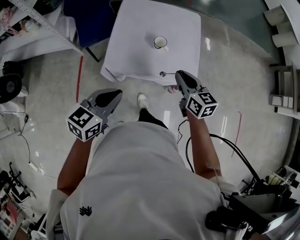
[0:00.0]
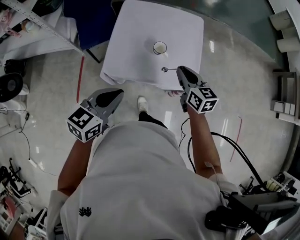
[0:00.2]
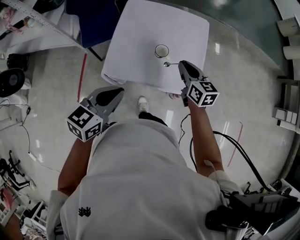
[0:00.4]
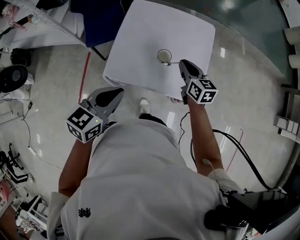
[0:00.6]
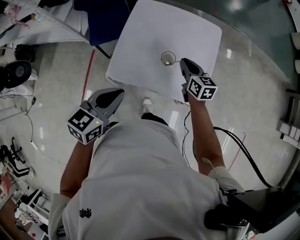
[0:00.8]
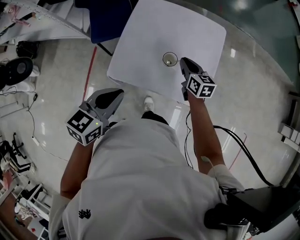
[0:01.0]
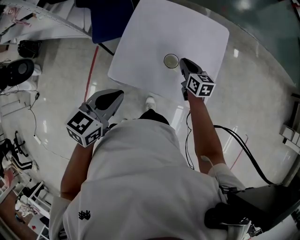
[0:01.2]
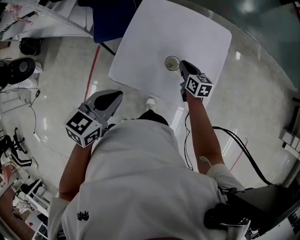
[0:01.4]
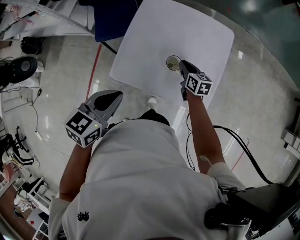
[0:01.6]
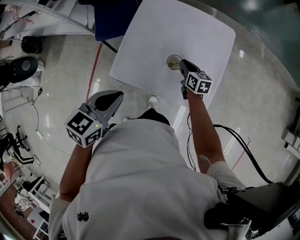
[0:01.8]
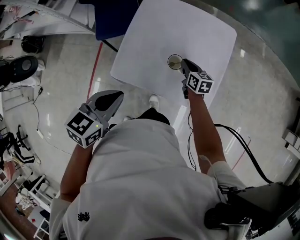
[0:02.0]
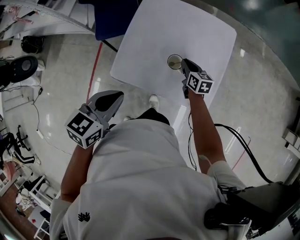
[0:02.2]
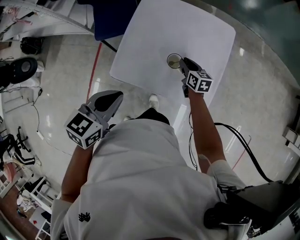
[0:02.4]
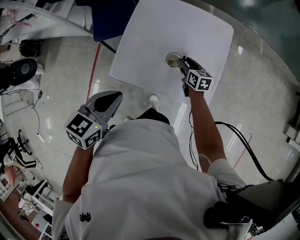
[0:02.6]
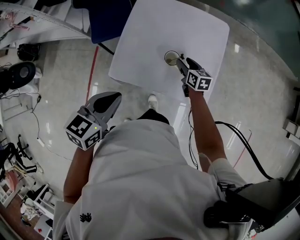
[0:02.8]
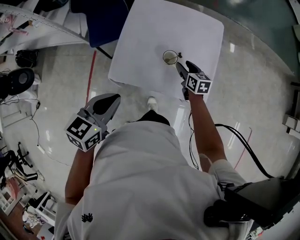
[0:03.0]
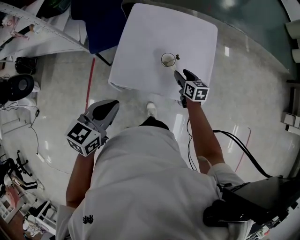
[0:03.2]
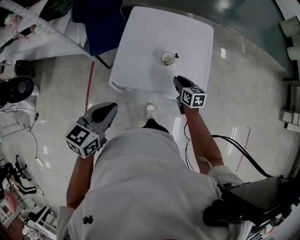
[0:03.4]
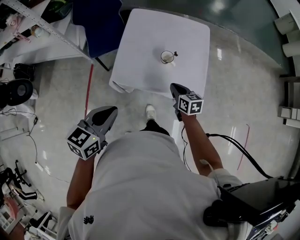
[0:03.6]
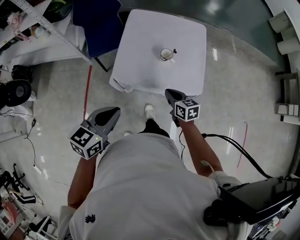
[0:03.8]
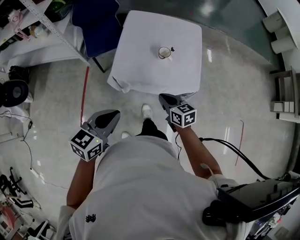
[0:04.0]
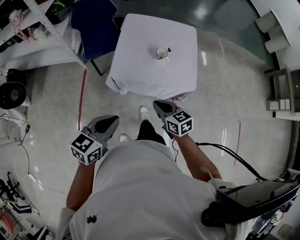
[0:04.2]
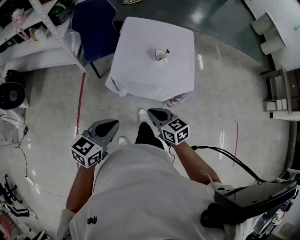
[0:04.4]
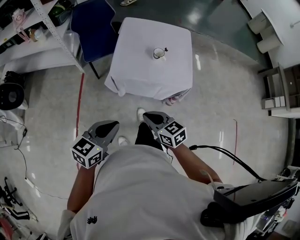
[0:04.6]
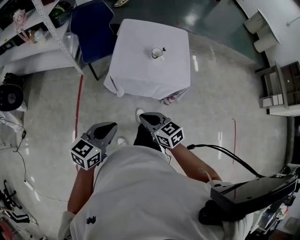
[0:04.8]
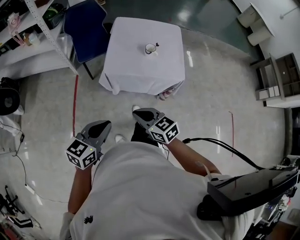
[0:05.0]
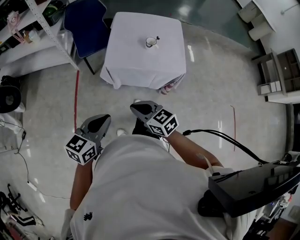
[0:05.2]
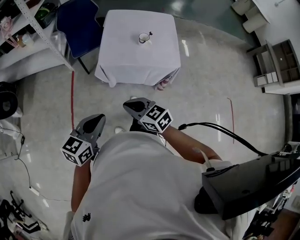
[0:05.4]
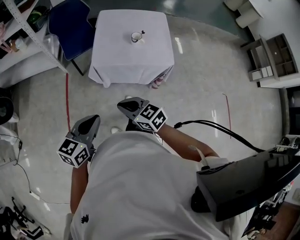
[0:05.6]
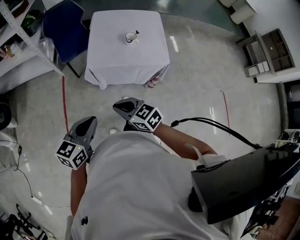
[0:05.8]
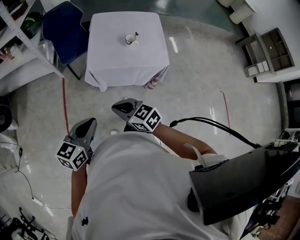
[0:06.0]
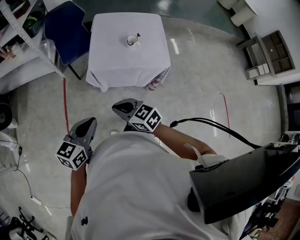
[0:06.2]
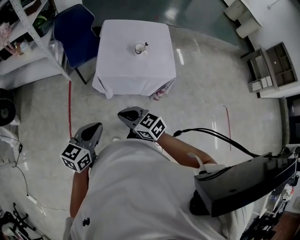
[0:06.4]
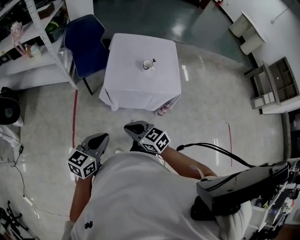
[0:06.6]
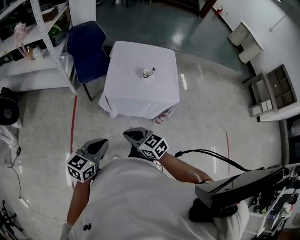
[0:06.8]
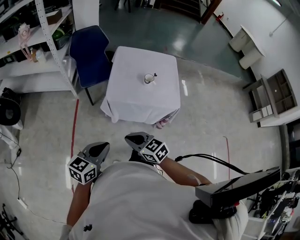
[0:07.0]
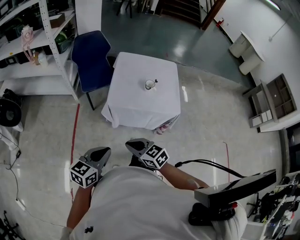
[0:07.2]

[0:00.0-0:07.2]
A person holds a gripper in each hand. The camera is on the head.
0:00.0 to 0:01.4: The right gripper heads forward and downward, covering approximately 35 cm. Meanwhile the left gripper is displaced forward by approximately 20 cm.
0:01.4 to 0:02.8: The right gripper opens up.
0:02.8 to 0:04.4: The left gripper travels backward by some 30 cm. The right gripper is displaced backward and upward by about 50 cm, and closes.
0:04.4 to 0:05.8: The right gripper heads backward and to the left, covering about 15 cm, while the left gripper heads backward, covering some 10 cm.
0:05.8 to 0:07.2: The grippers stay close to where they were, moving slightly.

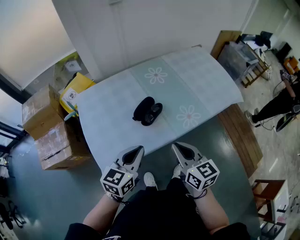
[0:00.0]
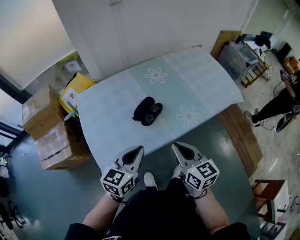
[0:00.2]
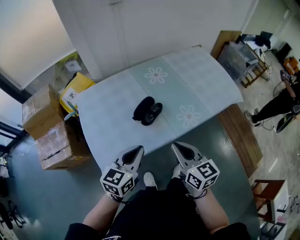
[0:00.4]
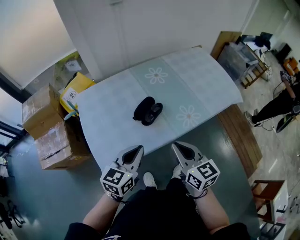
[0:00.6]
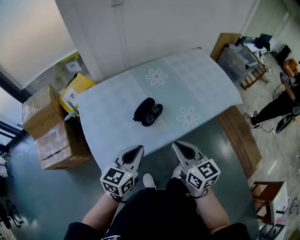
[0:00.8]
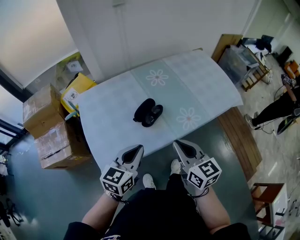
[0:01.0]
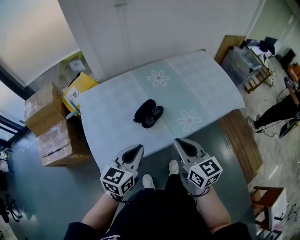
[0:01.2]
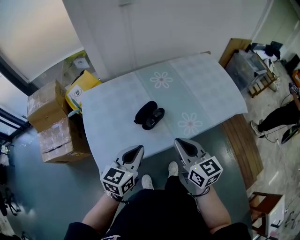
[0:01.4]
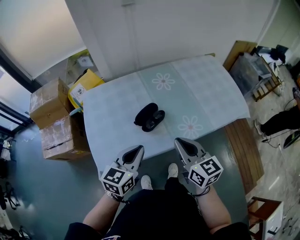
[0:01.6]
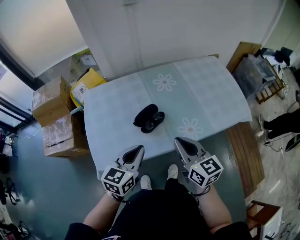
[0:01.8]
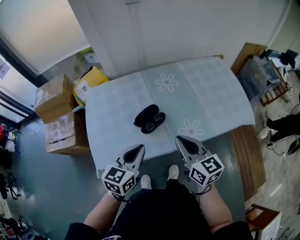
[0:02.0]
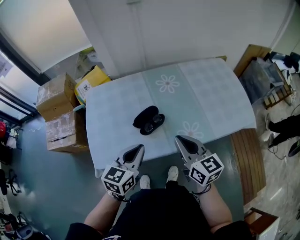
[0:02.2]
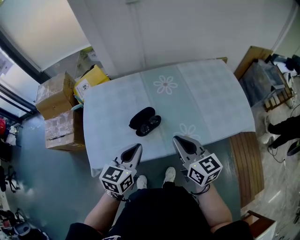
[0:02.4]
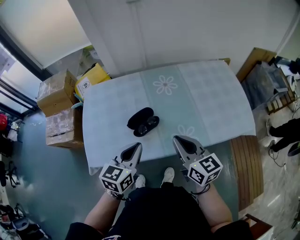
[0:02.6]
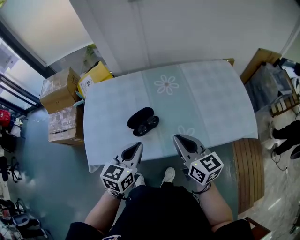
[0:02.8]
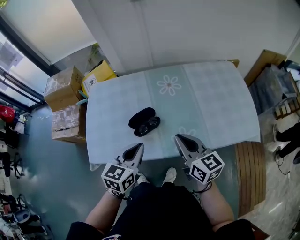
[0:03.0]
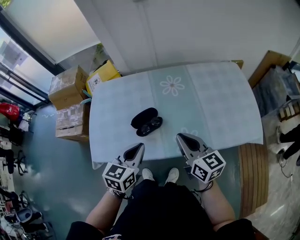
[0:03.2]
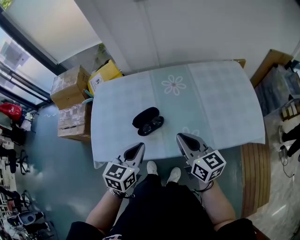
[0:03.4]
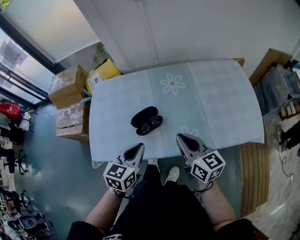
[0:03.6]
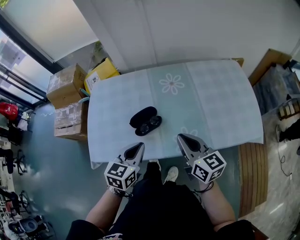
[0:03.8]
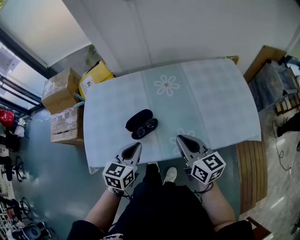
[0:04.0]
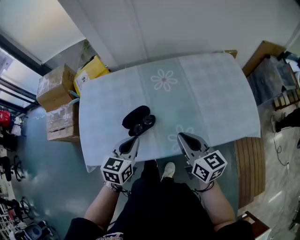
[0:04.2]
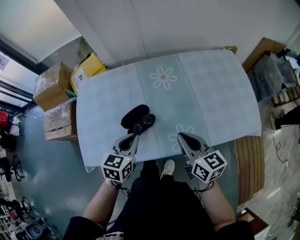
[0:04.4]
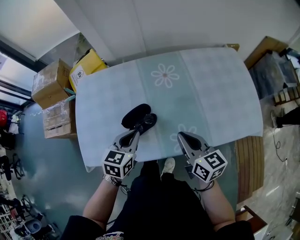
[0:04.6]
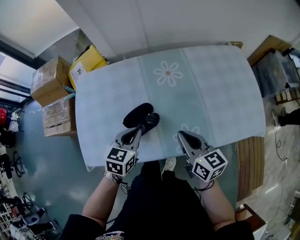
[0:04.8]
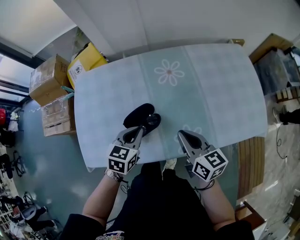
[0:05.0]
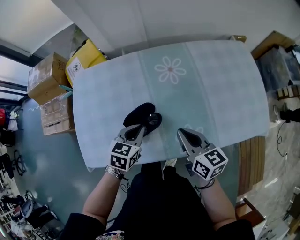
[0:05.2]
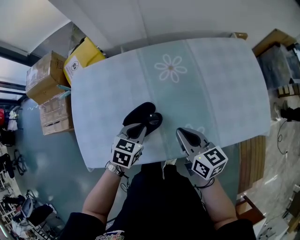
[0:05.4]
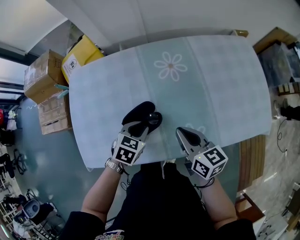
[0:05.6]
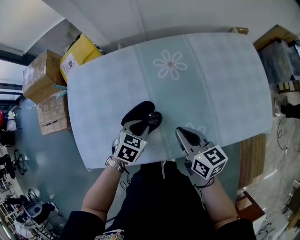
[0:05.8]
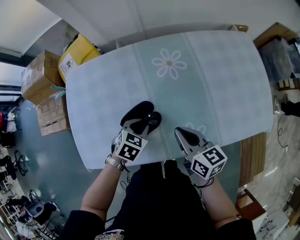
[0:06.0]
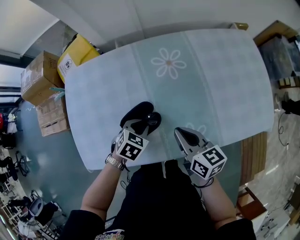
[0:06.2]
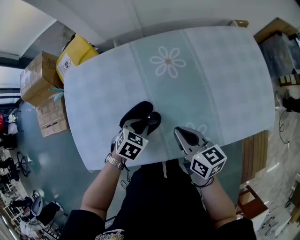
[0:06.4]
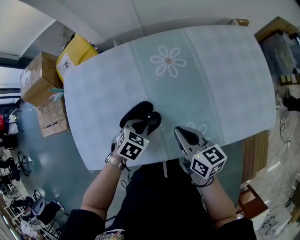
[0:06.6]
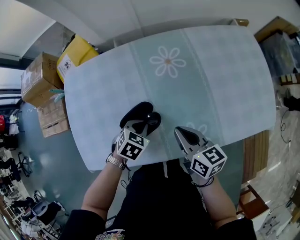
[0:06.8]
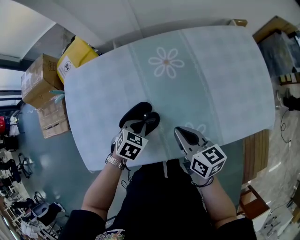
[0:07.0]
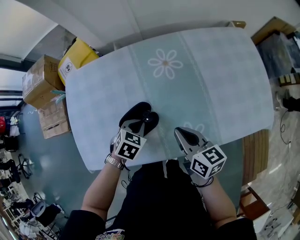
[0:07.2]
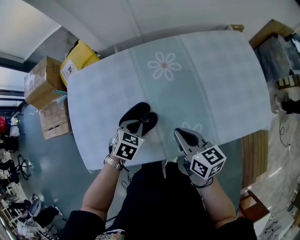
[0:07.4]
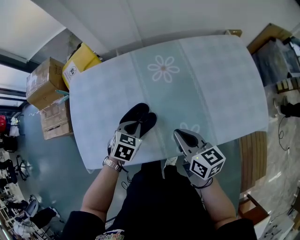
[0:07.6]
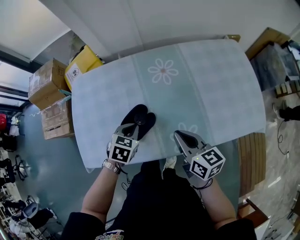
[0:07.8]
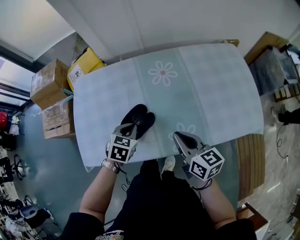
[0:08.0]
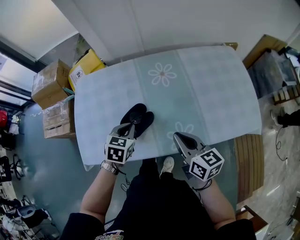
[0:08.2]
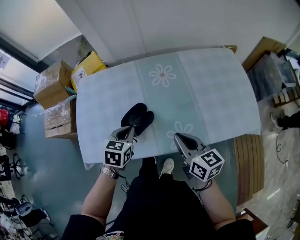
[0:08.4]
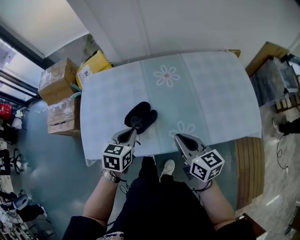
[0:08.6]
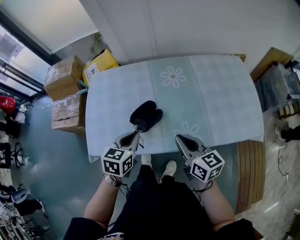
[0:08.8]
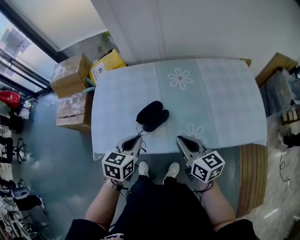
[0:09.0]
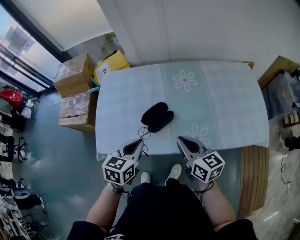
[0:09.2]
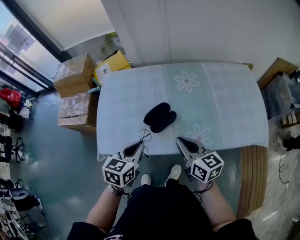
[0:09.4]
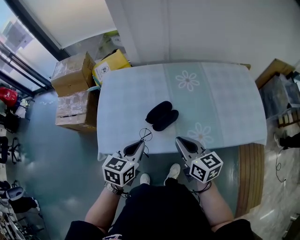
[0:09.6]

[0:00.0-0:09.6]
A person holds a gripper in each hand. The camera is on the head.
0:00.0 to 0:01.6: The right gripper is displaced forward by about 5 cm.
0:01.6 to 0:03.2: The right gripper shifts roughly 15 cm to the right and forward, while the left gripper heads to the right, covering roughly 10 cm.
0:03.2 to 0:04.8: The left gripper is displaced forward and downward by roughly 15 cm, while the right gripper travels downward by some 5 cm.
0:04.8 to 0:06.4: The right gripper moves downward, about 5 cm. Meanwhile the left gripper moves downward, about 15 cm, and swivels about 30 degrees.
0:06.4 to 0:08.0: The left gripper is displaced upward by some 5 cm; the right gripper is displaced upward and backward by approximately 5 cm.
0:08.0 to 0:09.6: The left gripper moves backward, upward and to the left, roughly 20 cm, and swivels roughly 30 degrees. Meanwhile the right gripper shifts some 10 cm to the left and backward.

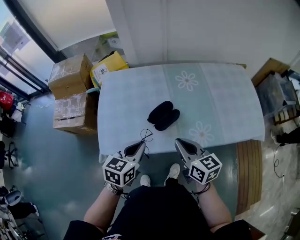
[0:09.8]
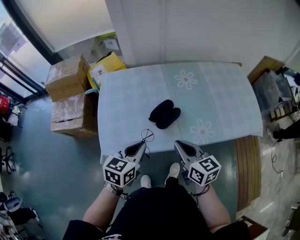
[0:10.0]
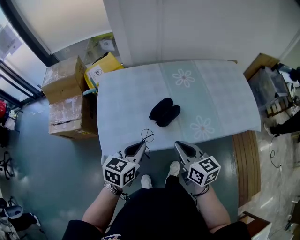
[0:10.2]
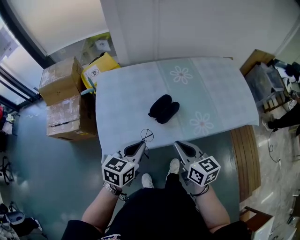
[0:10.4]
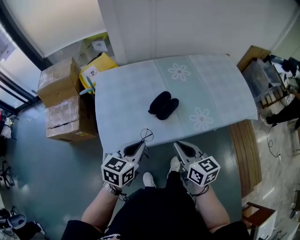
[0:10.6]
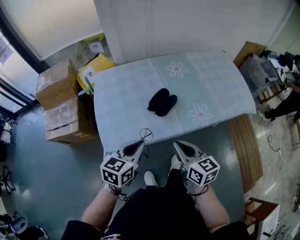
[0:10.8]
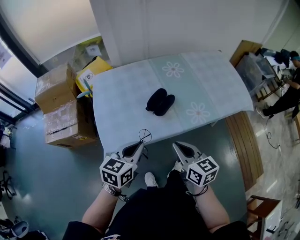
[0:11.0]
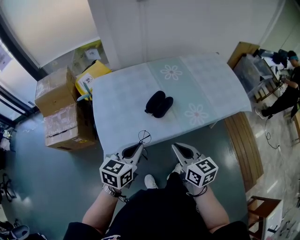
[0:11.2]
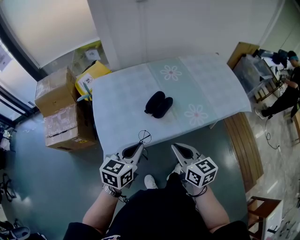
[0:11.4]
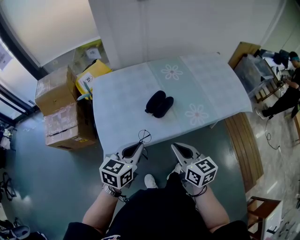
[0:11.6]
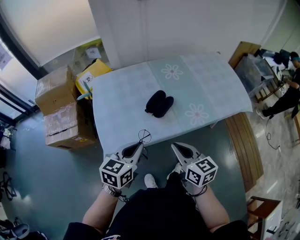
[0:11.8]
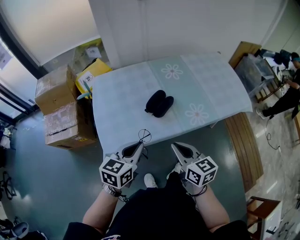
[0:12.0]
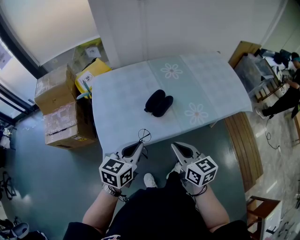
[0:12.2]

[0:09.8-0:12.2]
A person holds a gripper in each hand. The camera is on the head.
0:09.8 to 0:11.0: The left gripper heads backward, covering approximately 10 cm. Meanwhile the right gripper moves backward and to the left, about 15 cm.
0:11.0 to 0:12.2: Neither gripper changes place.

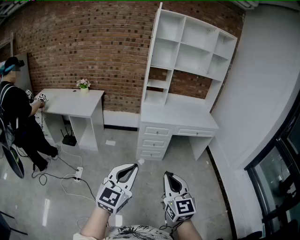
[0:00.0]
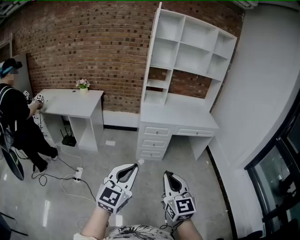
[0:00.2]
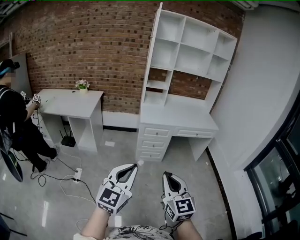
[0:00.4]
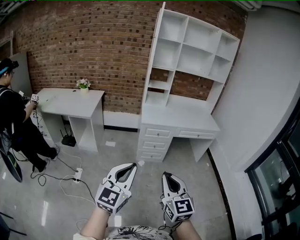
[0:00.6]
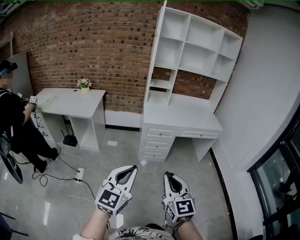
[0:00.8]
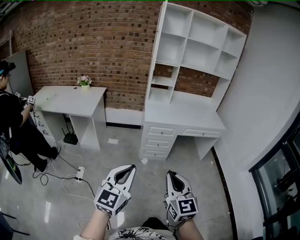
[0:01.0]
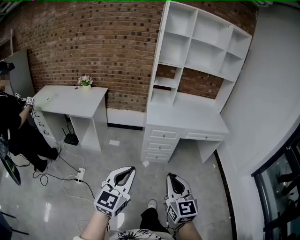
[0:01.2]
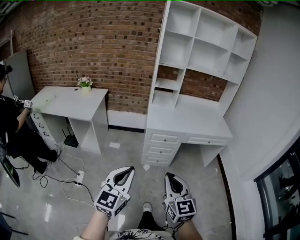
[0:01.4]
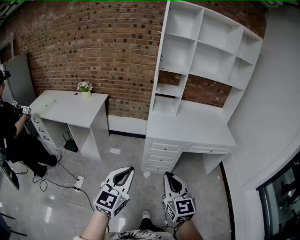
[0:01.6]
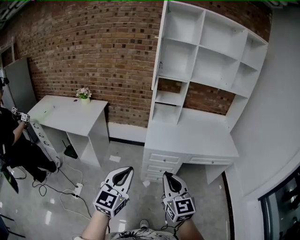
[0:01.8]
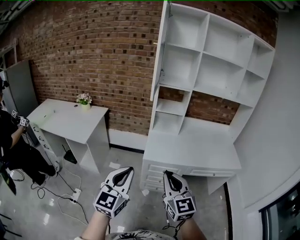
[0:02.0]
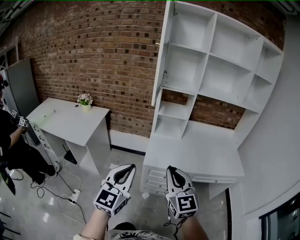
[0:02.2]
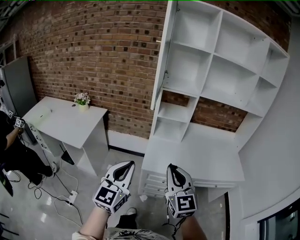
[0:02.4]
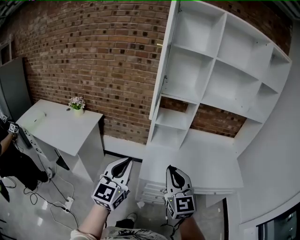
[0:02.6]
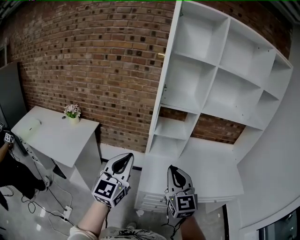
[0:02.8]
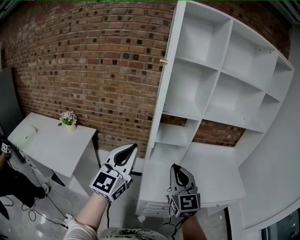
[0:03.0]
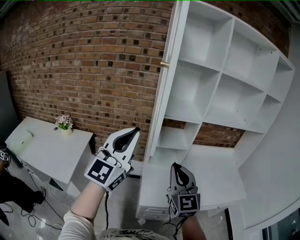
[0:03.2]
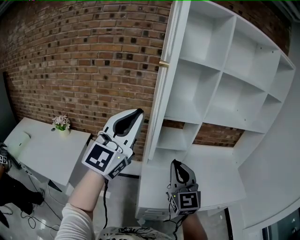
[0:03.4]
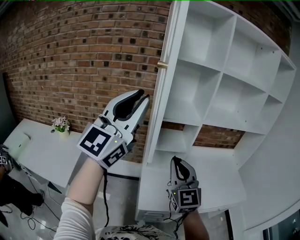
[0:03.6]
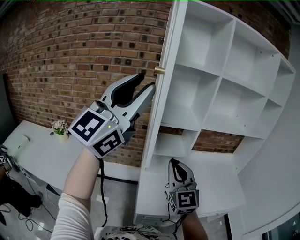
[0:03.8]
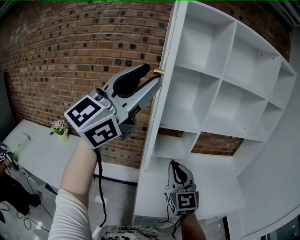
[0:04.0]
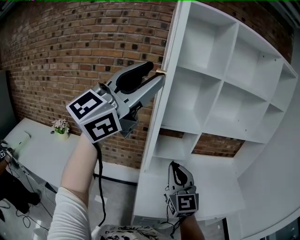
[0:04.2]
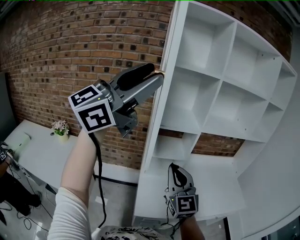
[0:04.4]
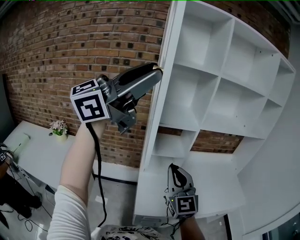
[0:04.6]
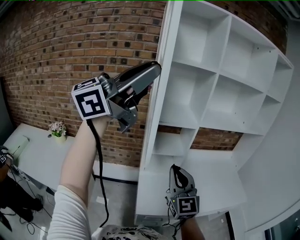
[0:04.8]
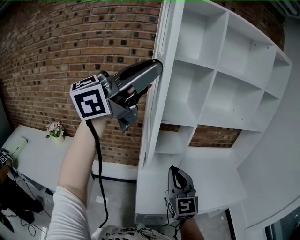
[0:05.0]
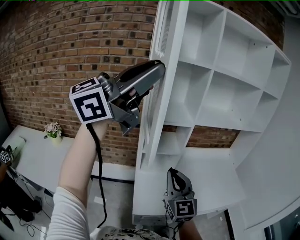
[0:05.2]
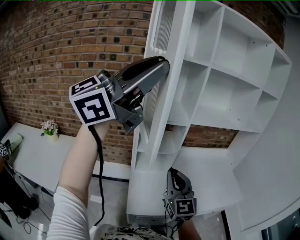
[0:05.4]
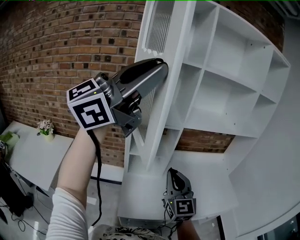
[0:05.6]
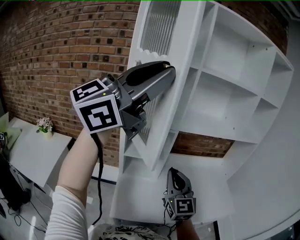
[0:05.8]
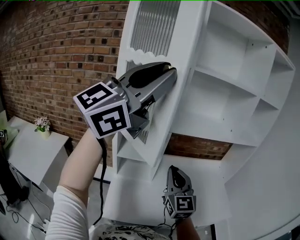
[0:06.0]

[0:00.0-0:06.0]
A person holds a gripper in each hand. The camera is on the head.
0:00.0 to 0:01.6: Both grippers travel together forward, approximately 30 cm.
0:01.6 to 0:03.0: The pair of grippers is taken forward, about 50 cm.
0:03.0 to 0:04.4: The right gripper moves forward, some 10 cm, while the left gripper travels upward by approximately 25 cm, rotates about 40 degrees, and opens.
0:04.4 to 0:06.0: The left gripper goes some 20 cm to the right and forward, and closes, while the right gripper is displaced forward and to the right by about 20 cm.
